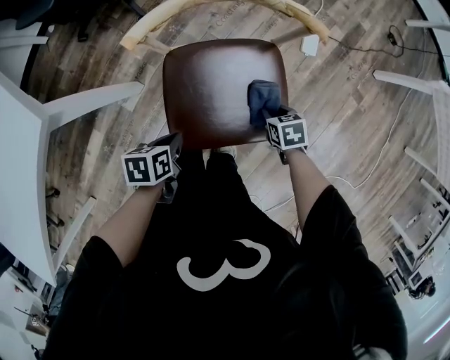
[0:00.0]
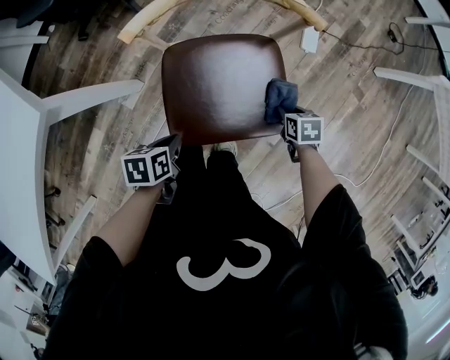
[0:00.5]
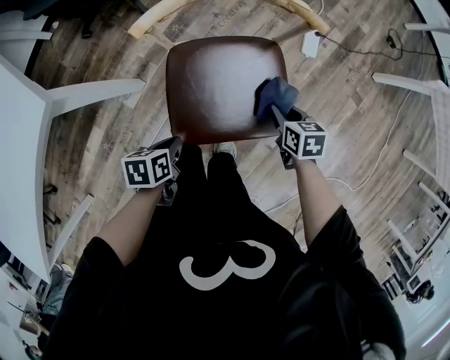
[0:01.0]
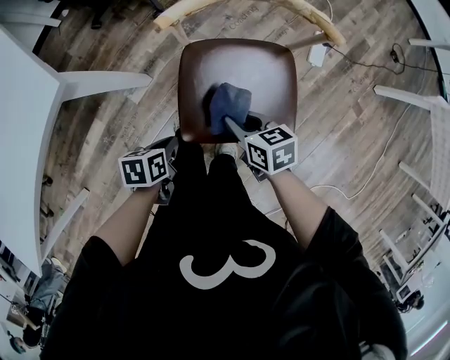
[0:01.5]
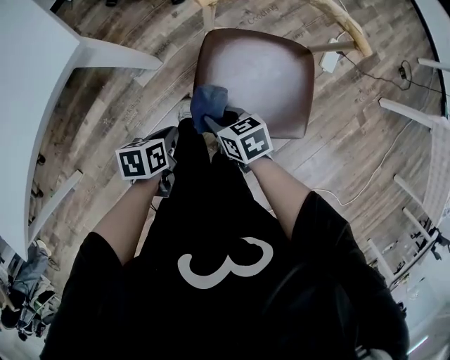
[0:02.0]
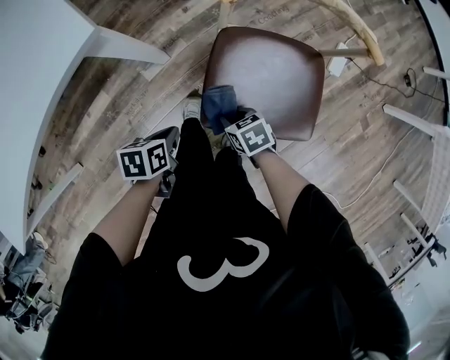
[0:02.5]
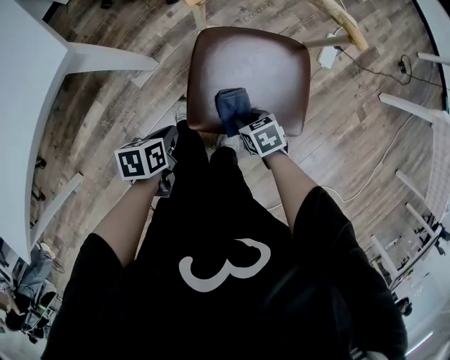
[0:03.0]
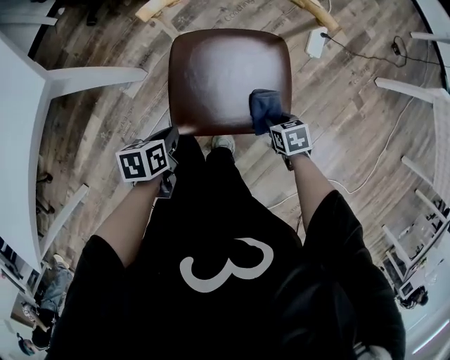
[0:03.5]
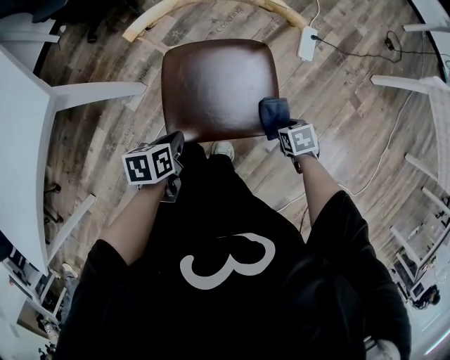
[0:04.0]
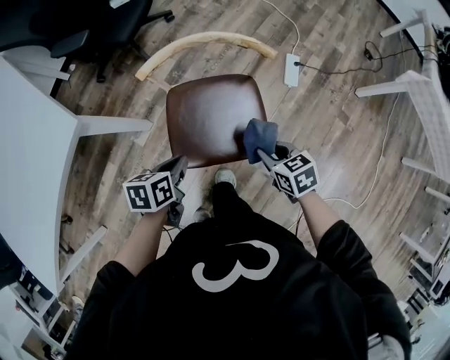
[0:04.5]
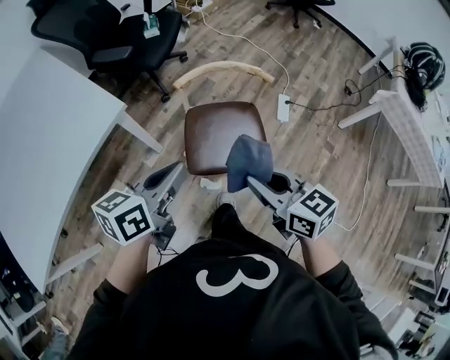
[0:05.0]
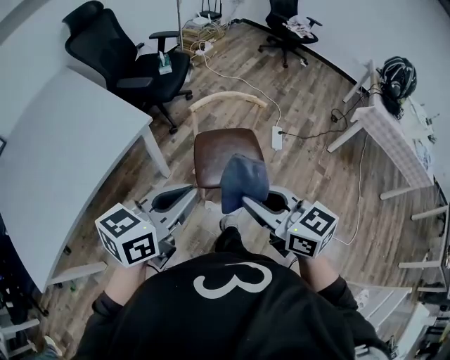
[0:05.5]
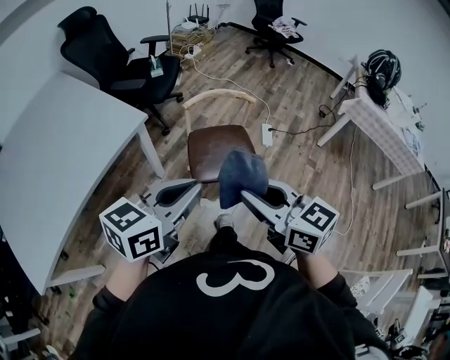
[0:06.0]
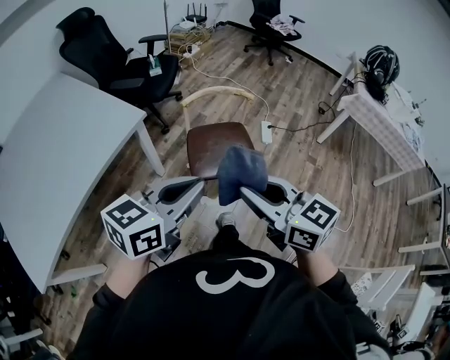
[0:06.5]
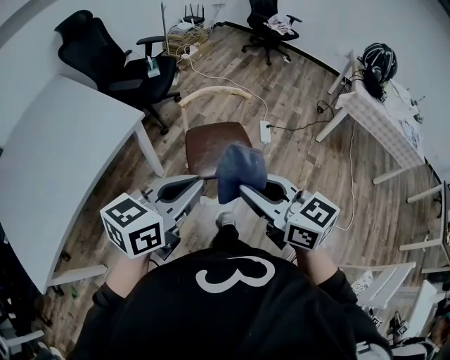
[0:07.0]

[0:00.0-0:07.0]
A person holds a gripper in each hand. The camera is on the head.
0:00.0 to 0:02.0: The right gripper ends up approximately 25 cm from where it was, and changes its angle by approximately 30 degrees, while the left gripper shifts by approximately 10 cm.
0:02.0 to 0:03.5: The left gripper heads to the right, covering roughly 5 cm; the right gripper shifts approximately 25 cm to the right, and changes its angle by some 30 degrees.
0:03.5 to 0:05.0: The grippers both shift upward by approximately 40 cm. The right gripper tilts its fingers some 50 degrees upward; the left gripper points its fingers approximately 40 degrees further upward.
0:05.0 to 0:07.0: Both grippers move backward and upward, some 25 cm. The left gripper turns by about 30 degrees.

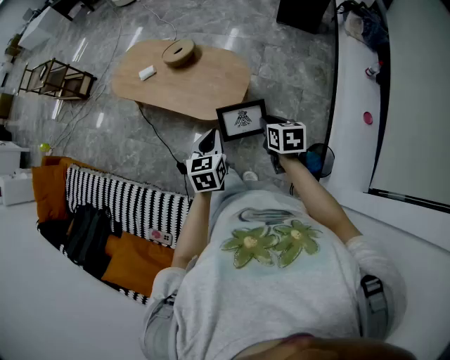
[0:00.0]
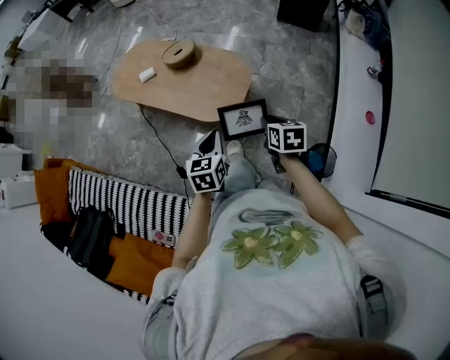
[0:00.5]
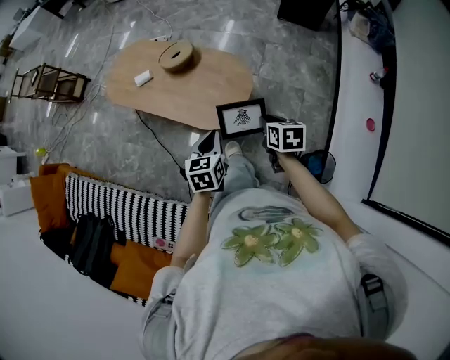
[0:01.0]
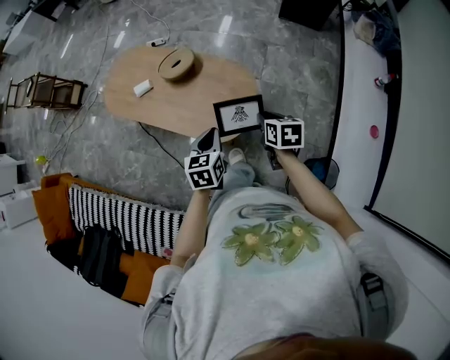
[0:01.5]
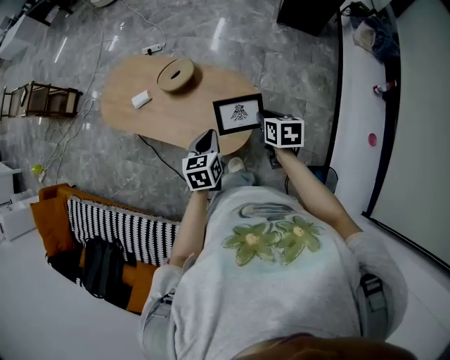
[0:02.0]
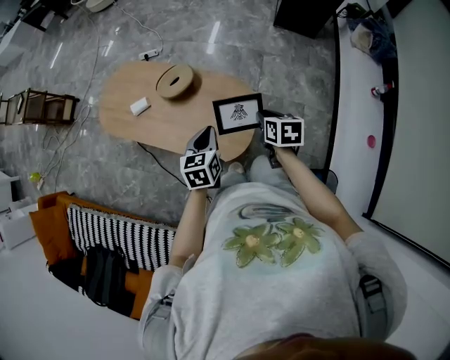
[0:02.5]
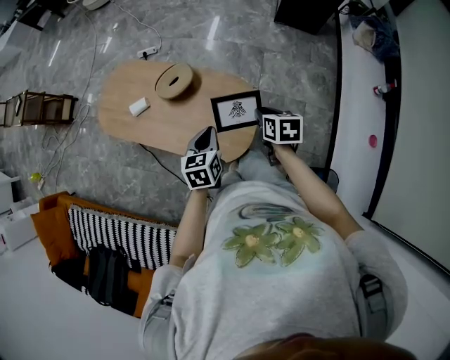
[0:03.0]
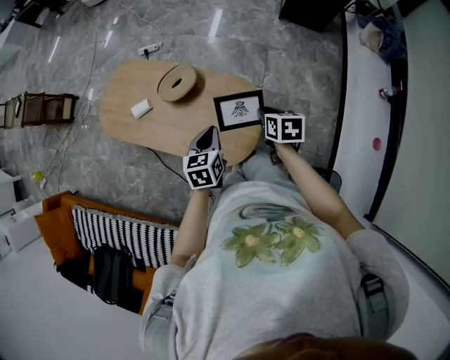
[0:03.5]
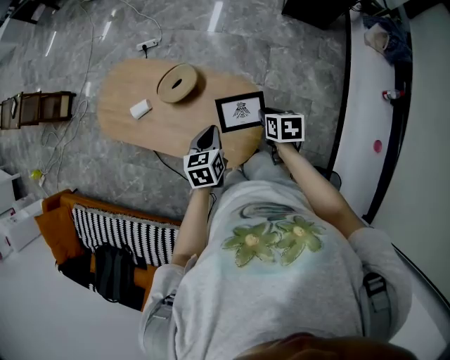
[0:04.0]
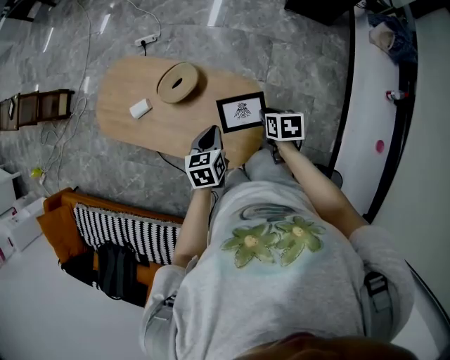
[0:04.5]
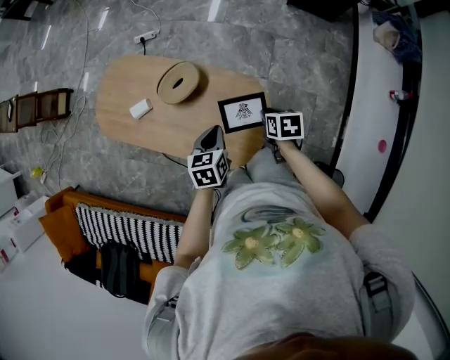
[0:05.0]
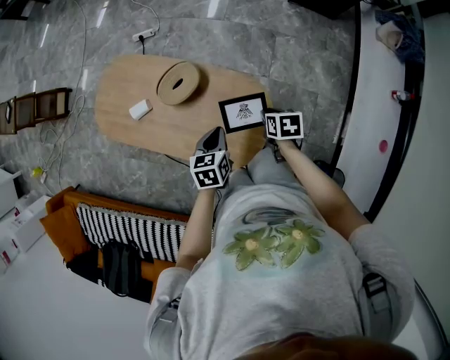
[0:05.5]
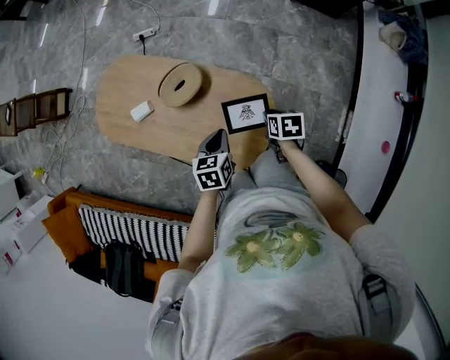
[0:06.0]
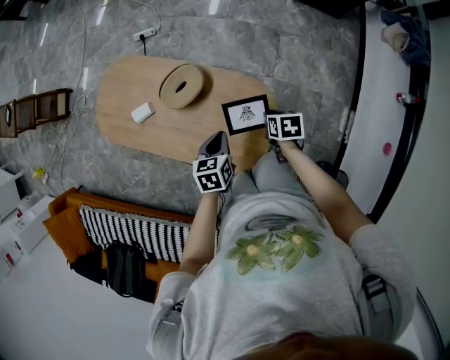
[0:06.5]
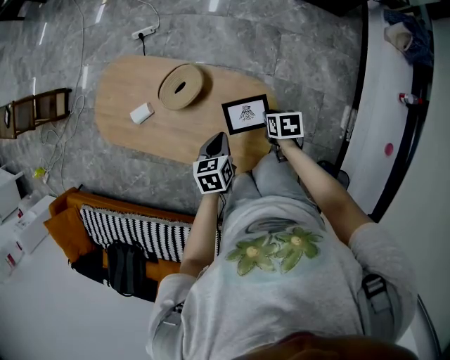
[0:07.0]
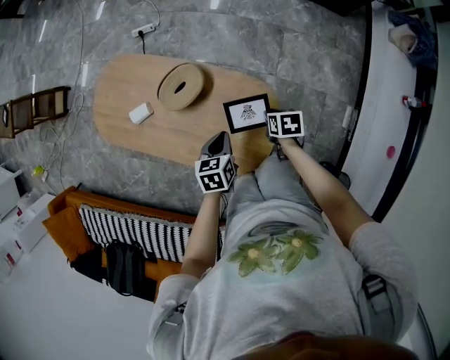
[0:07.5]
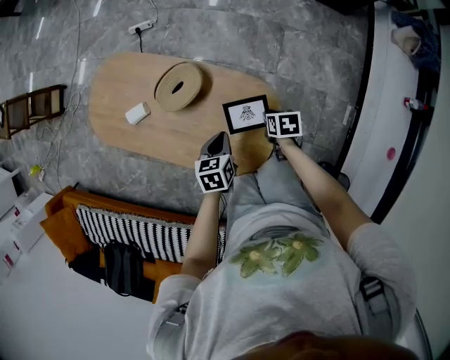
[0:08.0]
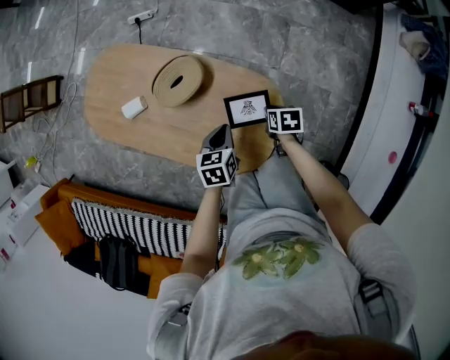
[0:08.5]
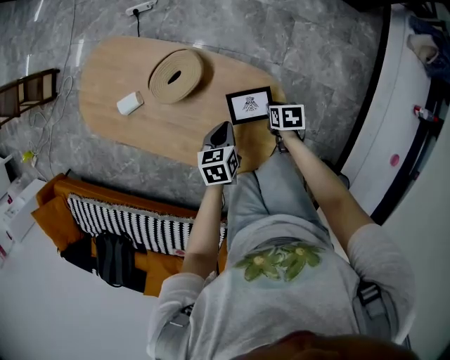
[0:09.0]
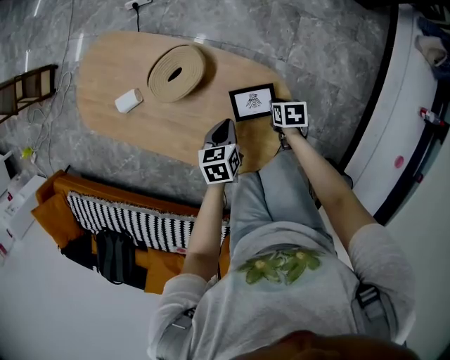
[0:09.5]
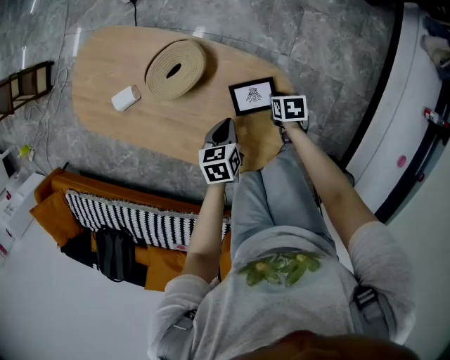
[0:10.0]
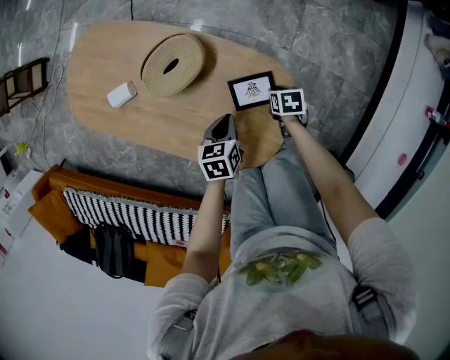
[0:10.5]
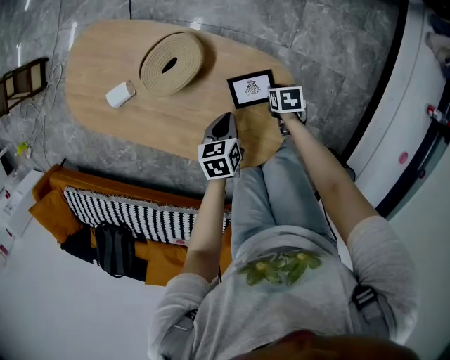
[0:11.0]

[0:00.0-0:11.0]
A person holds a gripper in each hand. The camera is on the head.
0:00.0 to 0:02.0: The grippers both shift forward by some 25 cm.
0:02.0 to 0:03.5: Both grippers move forward, about 10 cm.
0:03.5 to 0:05.5: The left gripper is displaced forward and downward by about 10 cm. The right gripper heads downward and forward, covering approximately 10 cm.
0:05.5 to 0:07.5: The two grippers go about 5 cm downward.
0:07.5 to 0:09.0: Both grippers move downward, about 10 cm.
0:09.0 to 0:11.0: Both grippers move downward, about 10 cm.

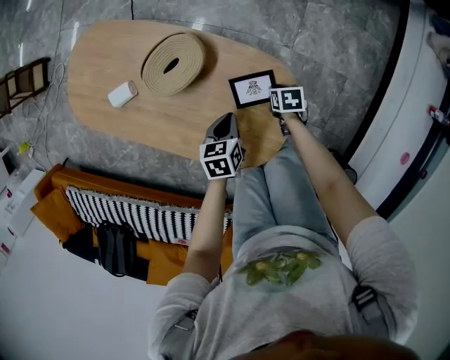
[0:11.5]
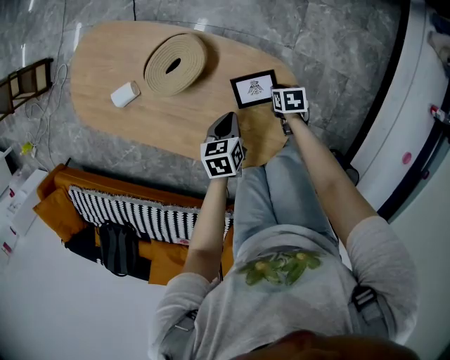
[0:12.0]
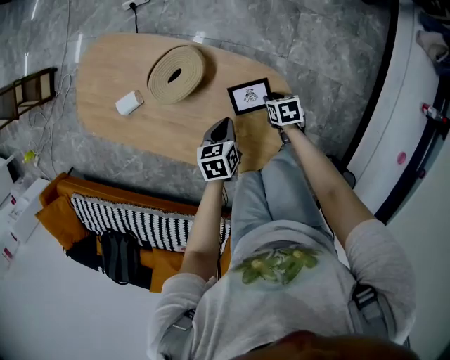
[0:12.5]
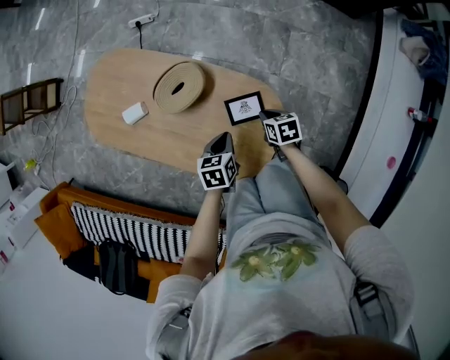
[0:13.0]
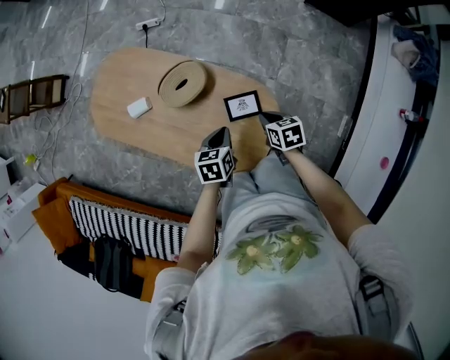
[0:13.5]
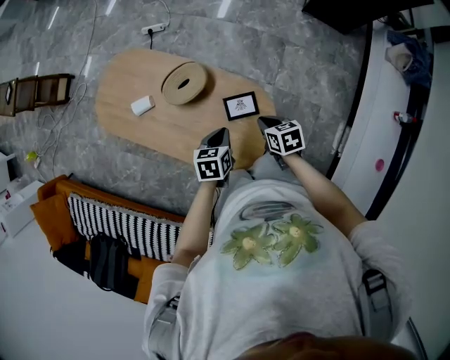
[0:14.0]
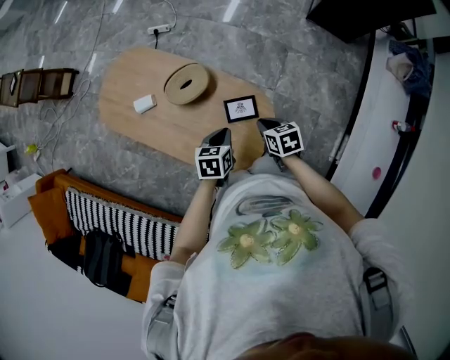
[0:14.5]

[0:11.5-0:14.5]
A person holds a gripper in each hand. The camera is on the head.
0:11.5 to 0:13.0: The right gripper travels upward by roughly 15 cm, while the left gripper goes approximately 5 cm upward.
0:13.0 to 0:14.5: Both grippers move upward, approximately 10 cm.

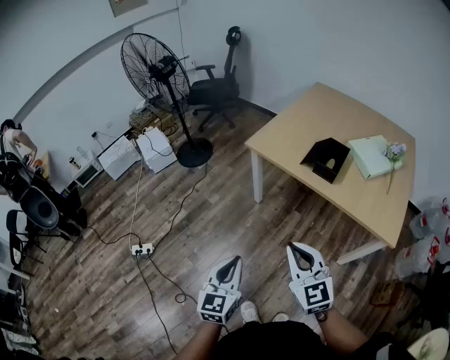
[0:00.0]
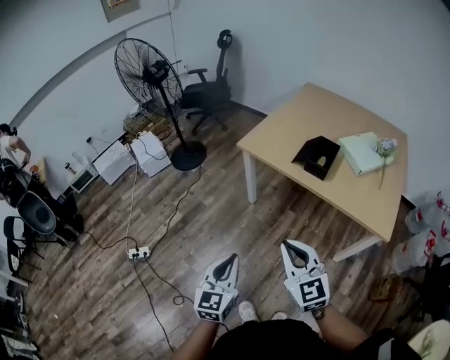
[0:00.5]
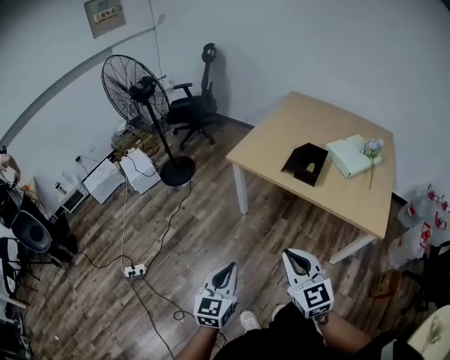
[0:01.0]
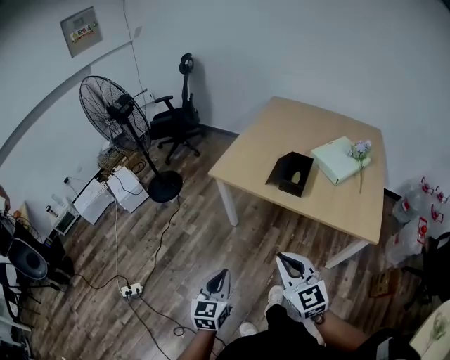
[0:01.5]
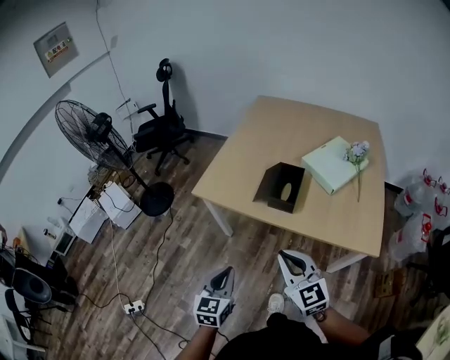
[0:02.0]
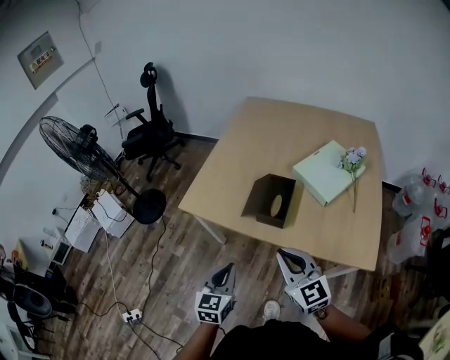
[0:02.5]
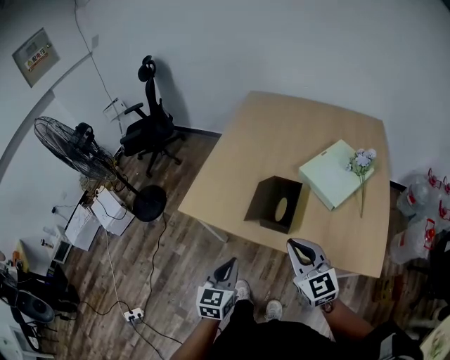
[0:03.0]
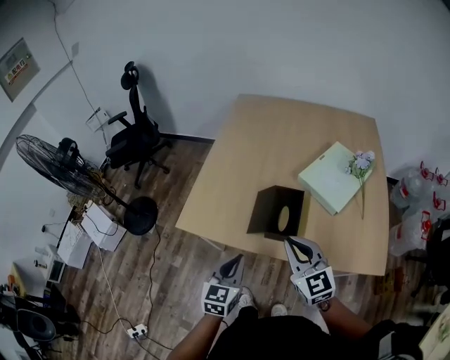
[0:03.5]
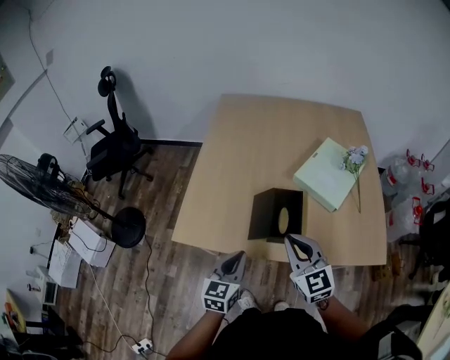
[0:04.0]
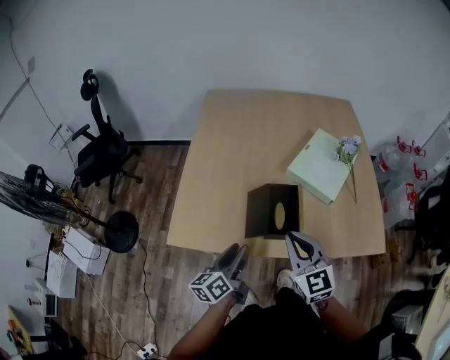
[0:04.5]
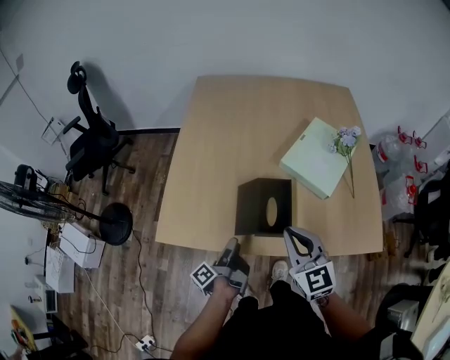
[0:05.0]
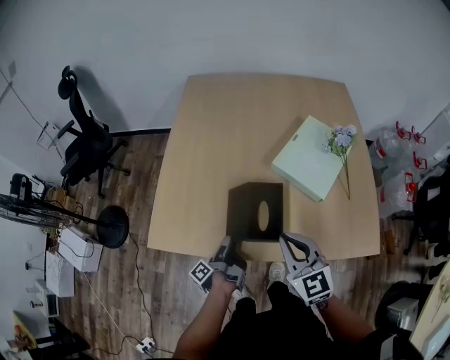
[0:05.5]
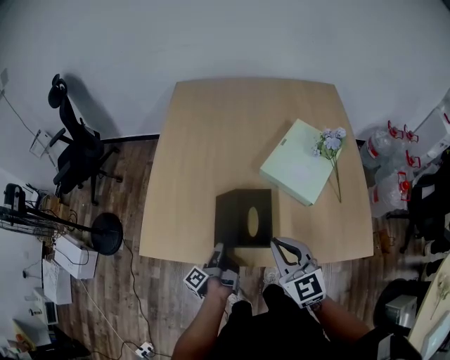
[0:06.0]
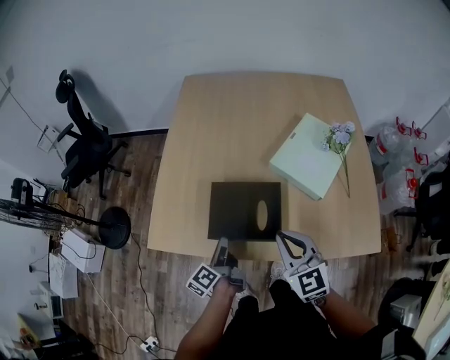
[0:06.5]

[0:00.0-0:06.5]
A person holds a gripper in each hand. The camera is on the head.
0:00.0 to 0:02.0: Both grippers travel together forward and to the right, some 20 cm.
0:02.0 to 0:04.5: Both grippers travel together forward, approximately 25 cm. The left gripper rotates about 50 degrees, and opens its fingers. Meanwhile the right gripper swivels about 20 degrees.
0:04.5 to 0:06.5: The right gripper moves about 5 cm; the left gripper goes some 10 cm downward and forward, swivels approximately 30 degrees, and closes up.
